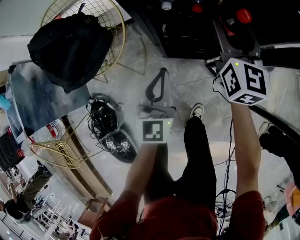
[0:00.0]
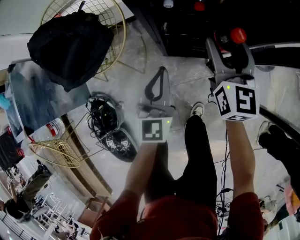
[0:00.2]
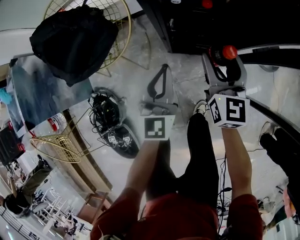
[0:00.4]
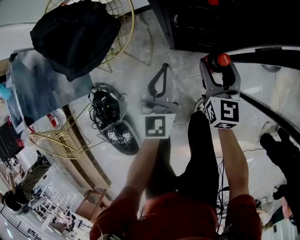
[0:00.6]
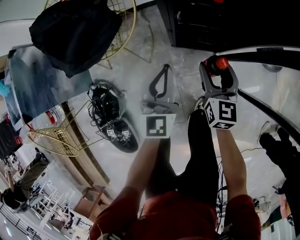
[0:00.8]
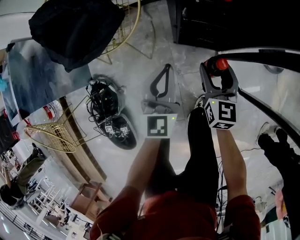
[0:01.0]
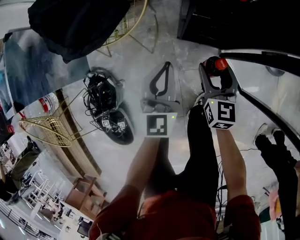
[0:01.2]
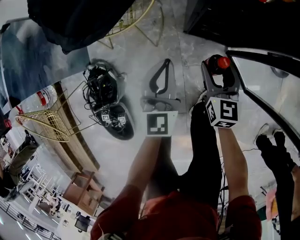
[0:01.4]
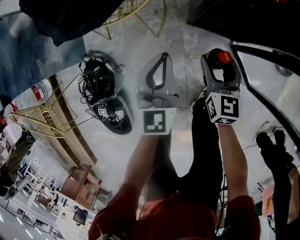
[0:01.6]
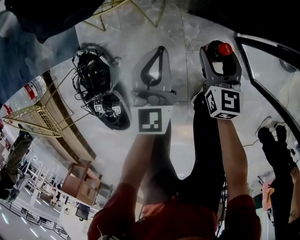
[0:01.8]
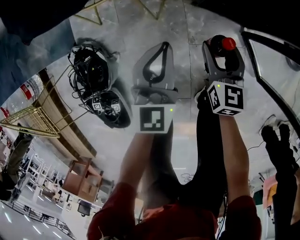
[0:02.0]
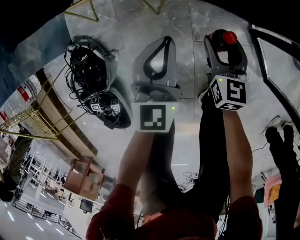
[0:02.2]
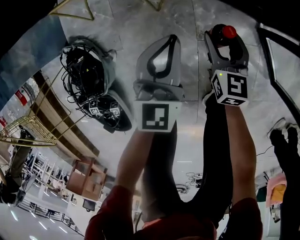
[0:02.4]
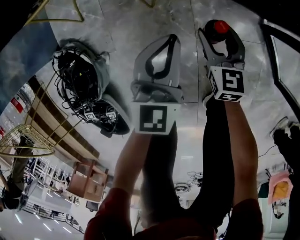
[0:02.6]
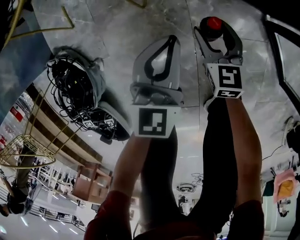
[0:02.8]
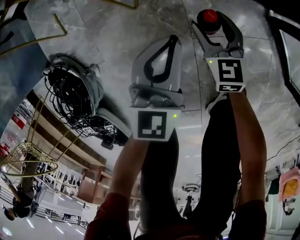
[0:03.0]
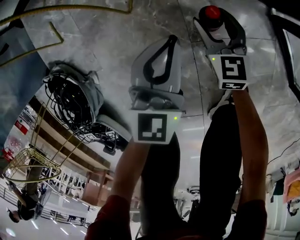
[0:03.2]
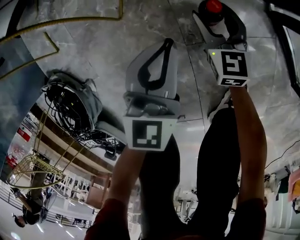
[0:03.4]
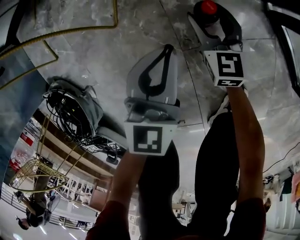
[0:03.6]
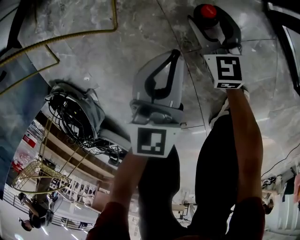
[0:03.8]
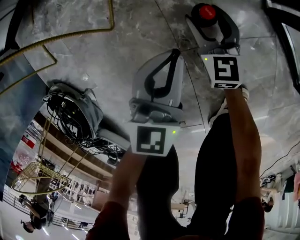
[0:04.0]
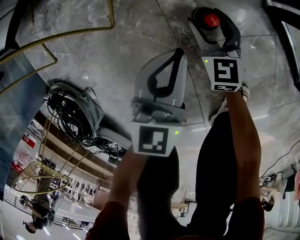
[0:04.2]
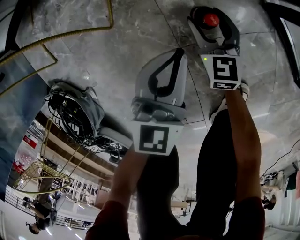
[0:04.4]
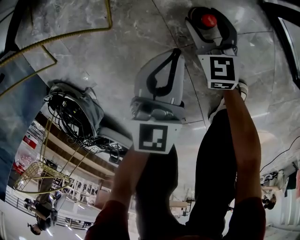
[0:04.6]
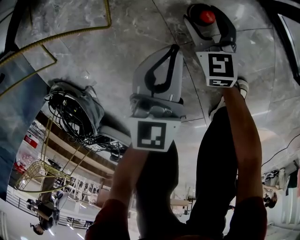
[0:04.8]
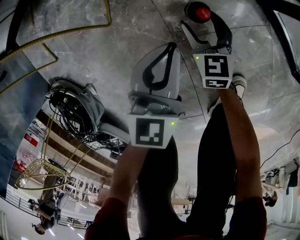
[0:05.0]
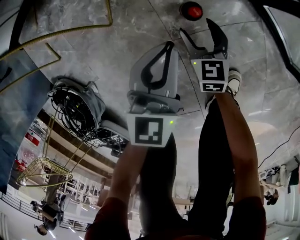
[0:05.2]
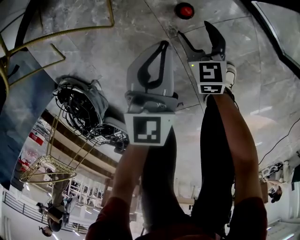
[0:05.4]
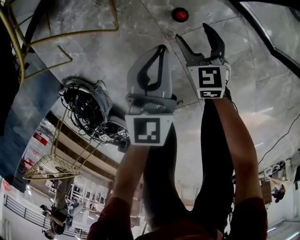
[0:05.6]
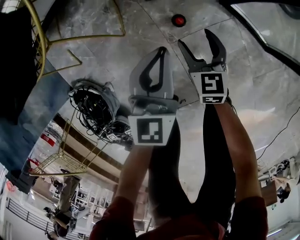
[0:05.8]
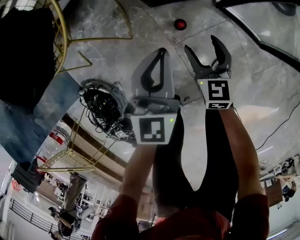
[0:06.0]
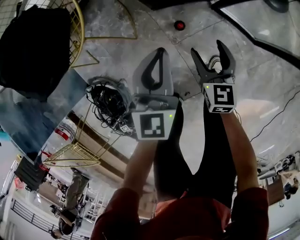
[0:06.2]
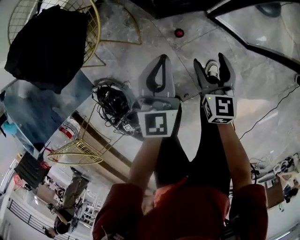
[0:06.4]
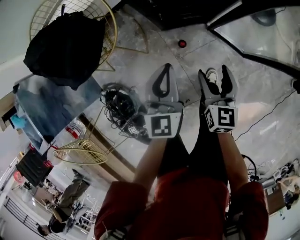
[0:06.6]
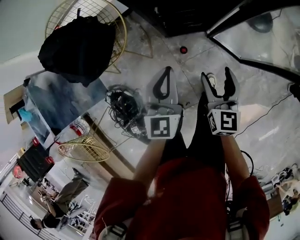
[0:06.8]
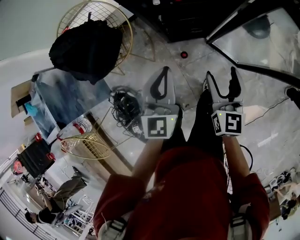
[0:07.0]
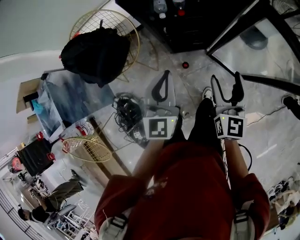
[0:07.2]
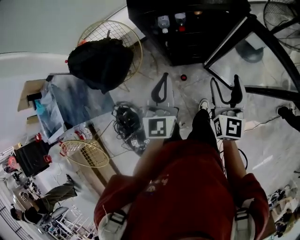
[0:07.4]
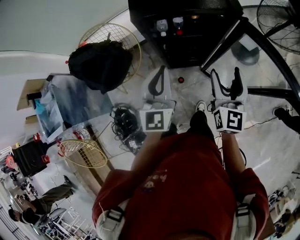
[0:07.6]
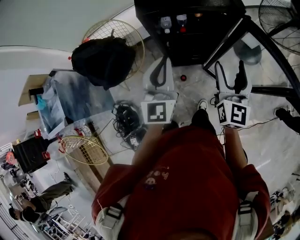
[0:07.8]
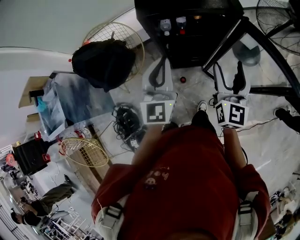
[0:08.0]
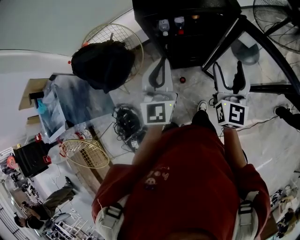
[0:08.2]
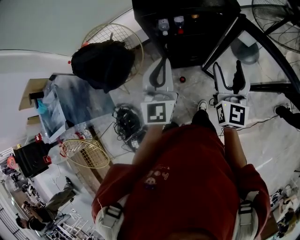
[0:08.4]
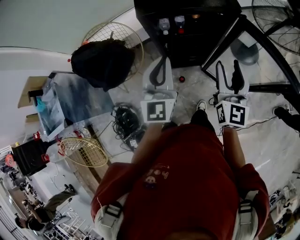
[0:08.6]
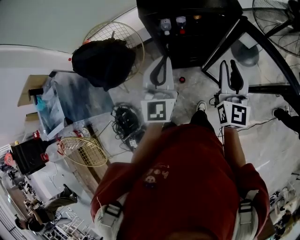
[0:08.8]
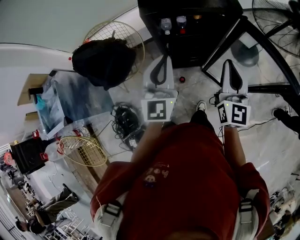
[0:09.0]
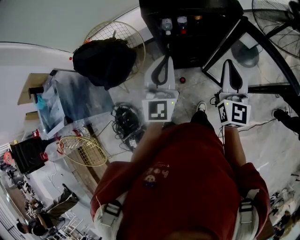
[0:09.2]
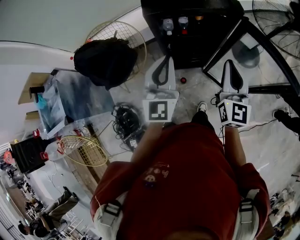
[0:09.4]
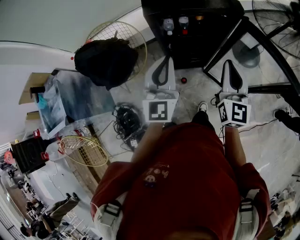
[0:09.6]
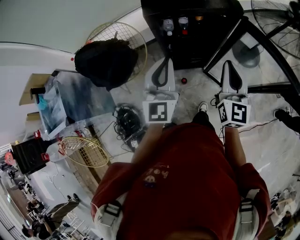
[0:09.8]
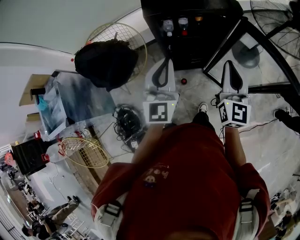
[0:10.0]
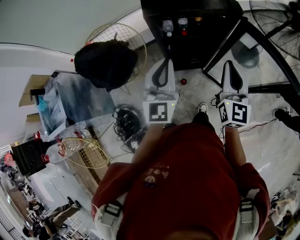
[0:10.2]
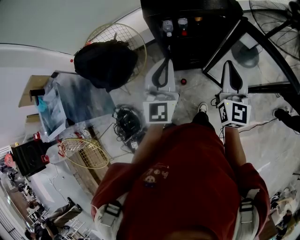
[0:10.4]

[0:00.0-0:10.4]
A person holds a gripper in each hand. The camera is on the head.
0:00.0 to 0:01.4: The right gripper moves downward, backward and to the left, roughly 30 cm, and turns by some 20 degrees; the left gripper heads to the left, downward and backward, covering some 15 cm.
0:01.4 to 0:03.0: Both grippers move downward, approximately 50 cm.
0:03.0 to 0:04.4: The right gripper travels downward and to the right by about 10 cm. Meanwhile the left gripper heads to the right and downward, covering roughly 10 cm.
0:04.4 to 0:06.0: Both grippers travel together upward, about 35 cm.
0:06.0 to 0:07.4: The grippers both shift upward by some 60 cm. The right gripper turns by about 30 degrees.
0:07.4 to 0:09.0: Both grippers travel together upward, approximately 10 cm. The right gripper closes its fingers.
0:09.0 to 0:10.4: Both grippers stay about where they are.

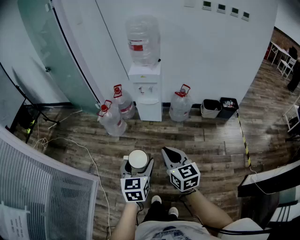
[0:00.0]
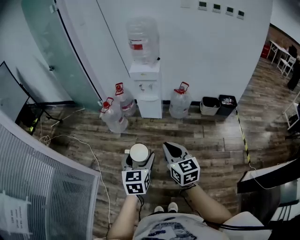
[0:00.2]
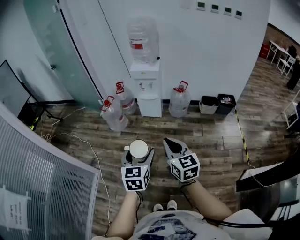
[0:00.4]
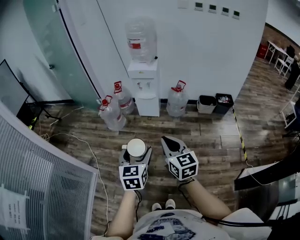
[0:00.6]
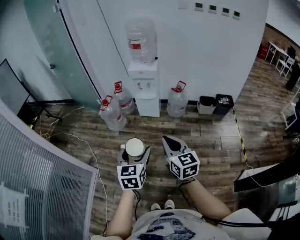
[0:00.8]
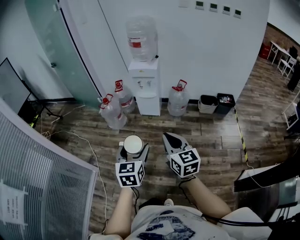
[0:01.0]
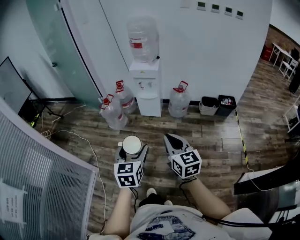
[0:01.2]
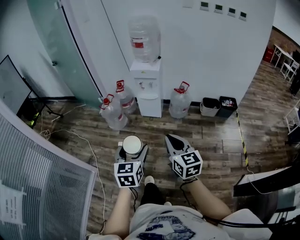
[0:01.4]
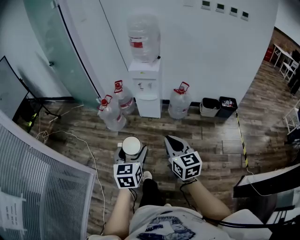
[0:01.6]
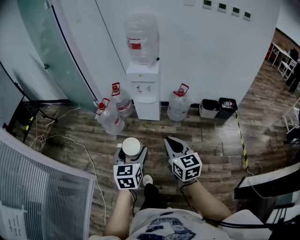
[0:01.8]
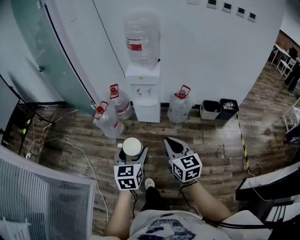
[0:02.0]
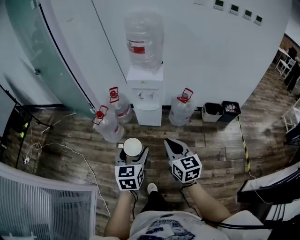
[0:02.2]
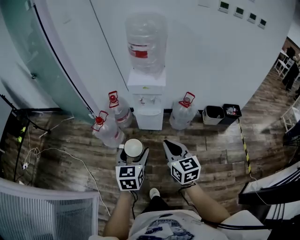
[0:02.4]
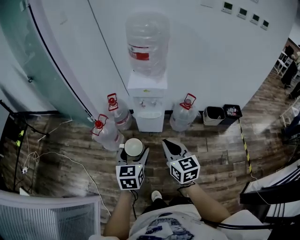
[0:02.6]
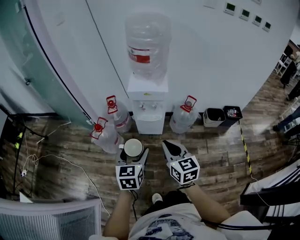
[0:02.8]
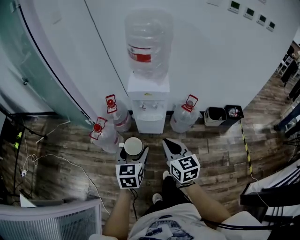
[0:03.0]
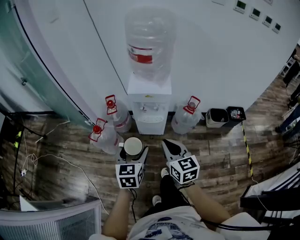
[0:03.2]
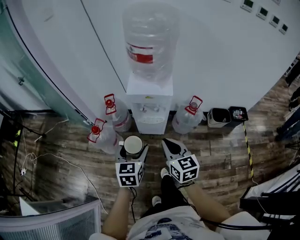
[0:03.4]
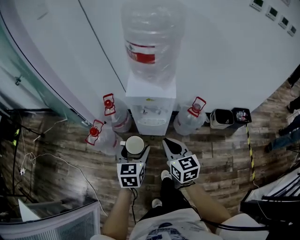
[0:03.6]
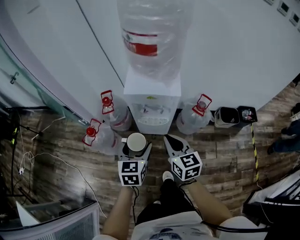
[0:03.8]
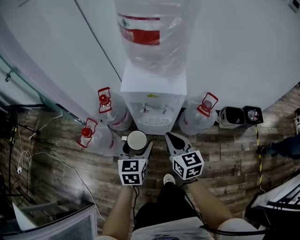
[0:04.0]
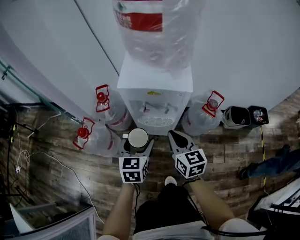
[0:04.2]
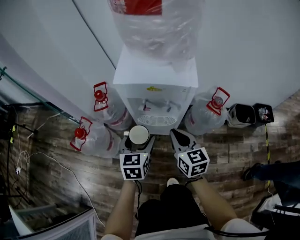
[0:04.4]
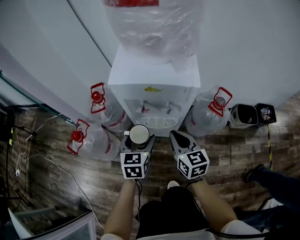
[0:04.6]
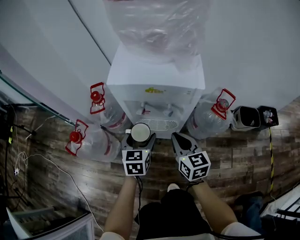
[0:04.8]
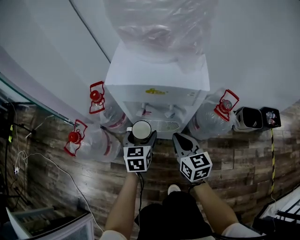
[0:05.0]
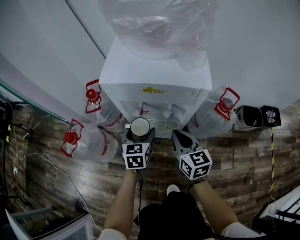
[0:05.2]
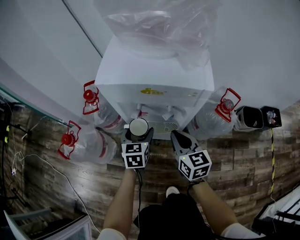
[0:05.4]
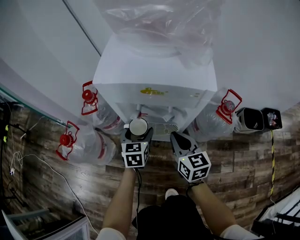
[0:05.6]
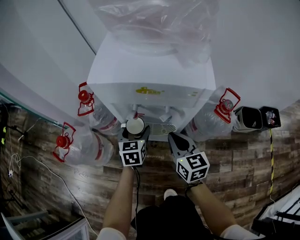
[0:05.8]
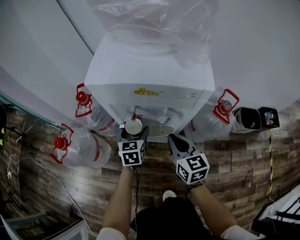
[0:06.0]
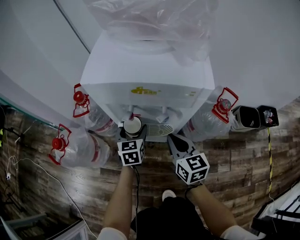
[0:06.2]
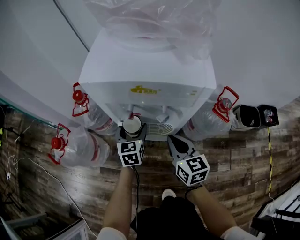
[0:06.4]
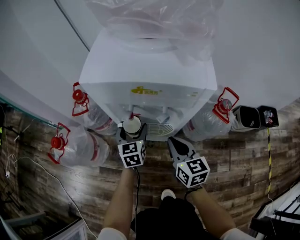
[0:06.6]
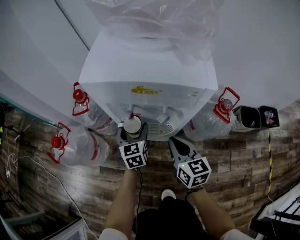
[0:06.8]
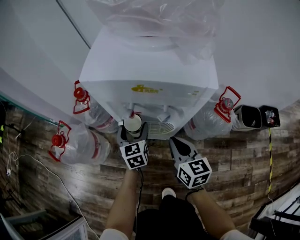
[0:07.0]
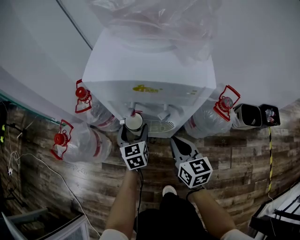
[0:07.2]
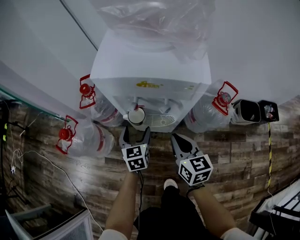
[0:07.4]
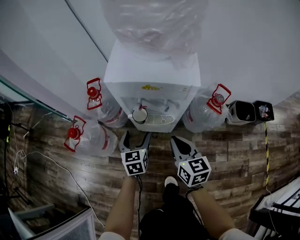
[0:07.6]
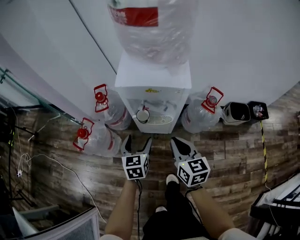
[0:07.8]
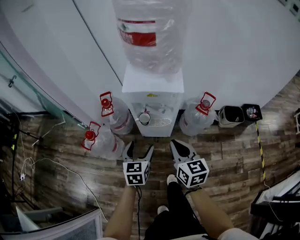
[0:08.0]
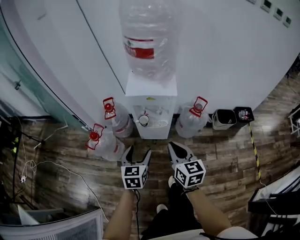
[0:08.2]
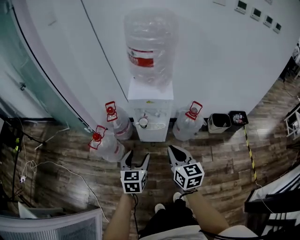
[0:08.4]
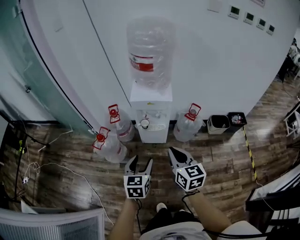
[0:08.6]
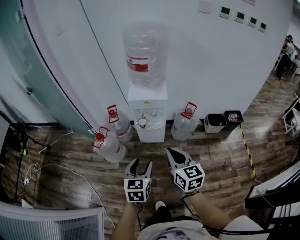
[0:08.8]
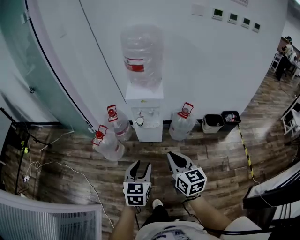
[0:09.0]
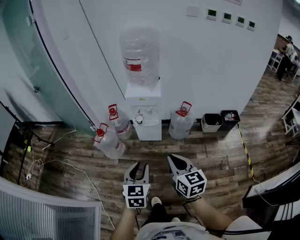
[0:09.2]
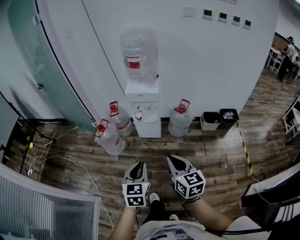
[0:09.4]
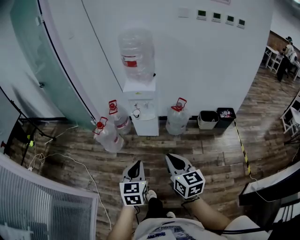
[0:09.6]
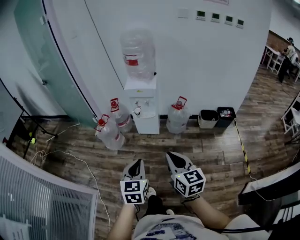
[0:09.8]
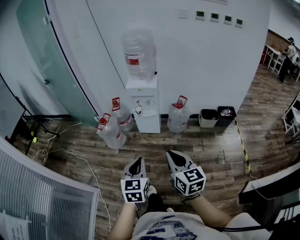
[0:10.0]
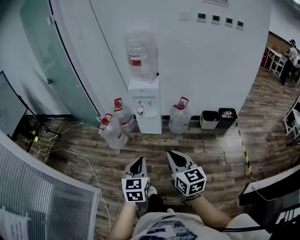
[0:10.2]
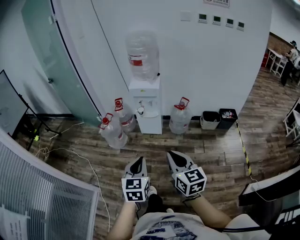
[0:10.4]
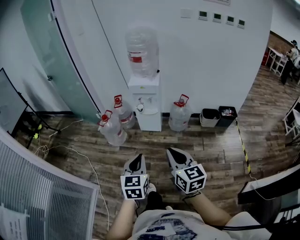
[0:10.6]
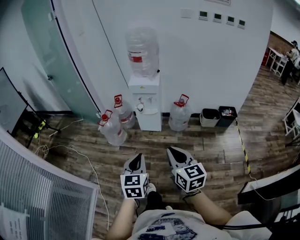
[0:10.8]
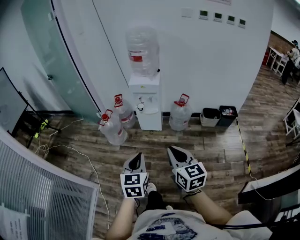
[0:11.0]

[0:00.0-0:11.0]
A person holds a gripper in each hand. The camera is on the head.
0:00.0 to 0:01.6: The left gripper goes backward and returns, approximately 10 cm each way, while the right gripper moves to the right, some 5 cm, and moves about 10 cm backward and comes back.
0:01.6 to 0:03.2: Both grippers are carried forward, about 40 cm.
0:03.2 to 0:04.8: The grippers both shift downward and forward by roughly 40 cm.
0:04.8 to 0:06.2: The right gripper moves downward, roughly 5 cm. Meanwhile the left gripper shifts approximately 15 cm downward and forward.
0:06.2 to 0:07.8: The two grippers go about 25 cm upward and backward.
0:07.8 to 0:09.4: The pair of grippers is taken backward, about 50 cm. Both grippers travel together upward, about 35 cm. The left gripper closes its fingers.
0:09.4 to 0:11.0: Both grippers travel together backward, some 10 cm.

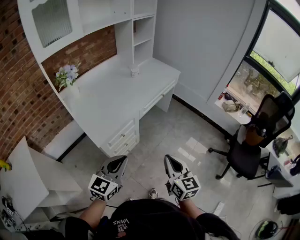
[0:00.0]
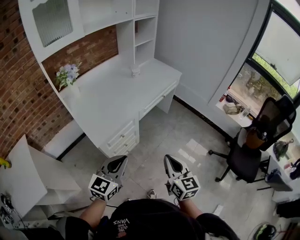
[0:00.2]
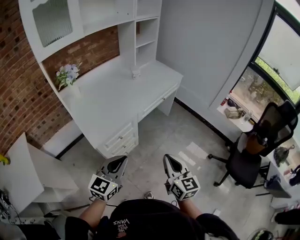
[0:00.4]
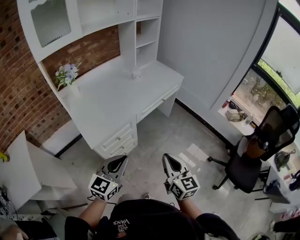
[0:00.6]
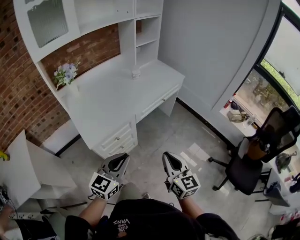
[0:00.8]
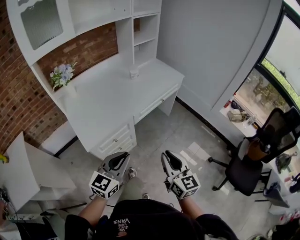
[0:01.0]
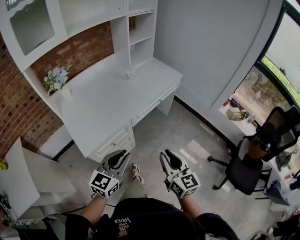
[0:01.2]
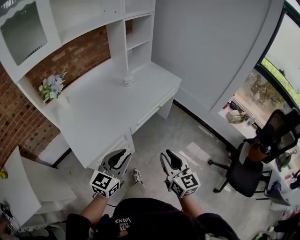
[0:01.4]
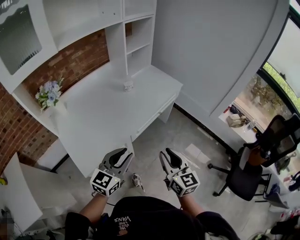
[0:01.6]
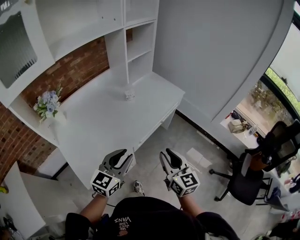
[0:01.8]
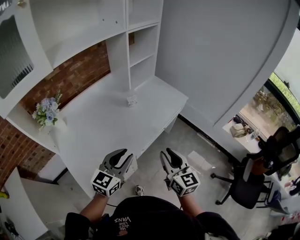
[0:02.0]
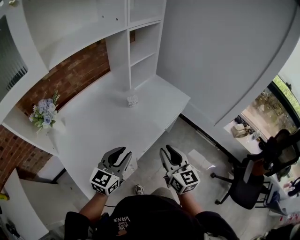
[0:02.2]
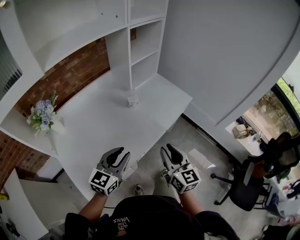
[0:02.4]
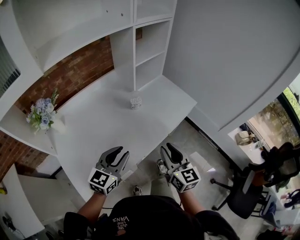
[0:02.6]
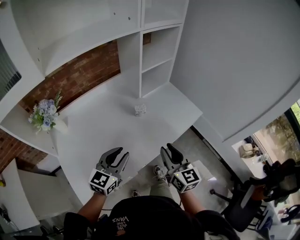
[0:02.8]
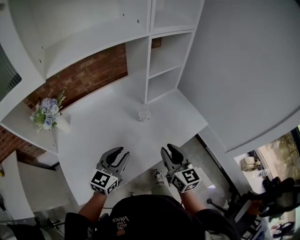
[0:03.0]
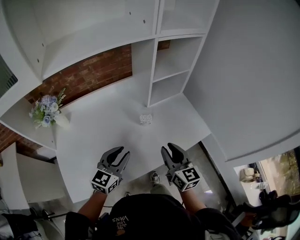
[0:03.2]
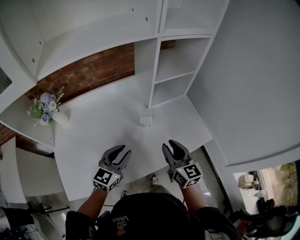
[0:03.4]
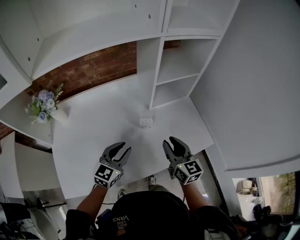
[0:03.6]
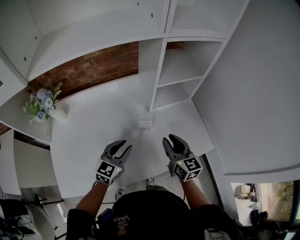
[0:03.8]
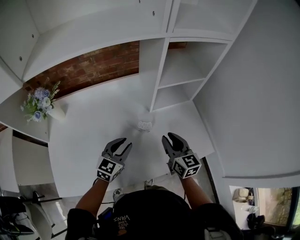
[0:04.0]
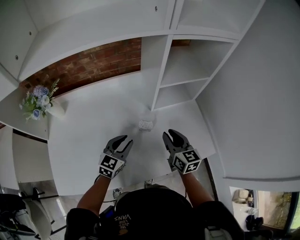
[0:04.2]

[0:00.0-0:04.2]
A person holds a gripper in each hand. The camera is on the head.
0:00.0 to 0:01.4: Both grippers travel together forward, approximately 20 cm.
0:01.4 to 0:02.8: Both grippers move forward, approximately 30 cm.
0:02.8 to 0:04.2: The left gripper moves forward and downward, some 25 cm, and swivels approximately 20 degrees, while the right gripper is displaced forward by about 30 cm, and turns by about 20 degrees.
